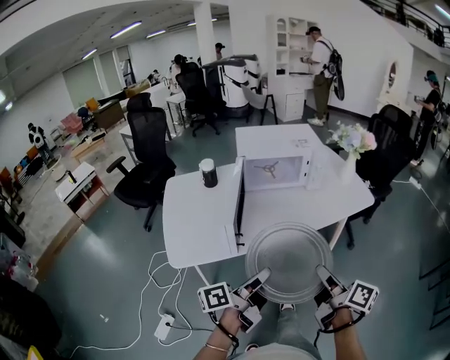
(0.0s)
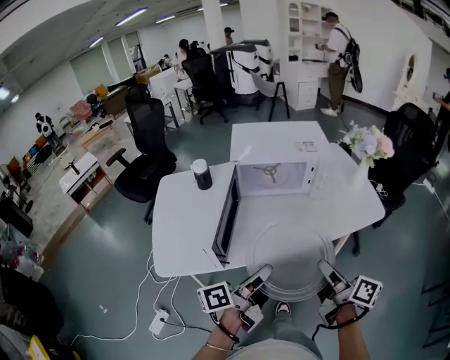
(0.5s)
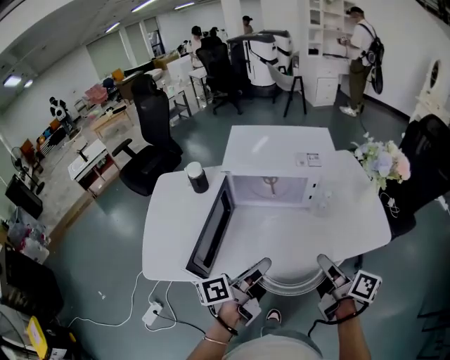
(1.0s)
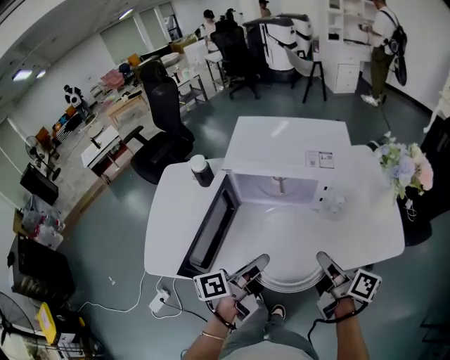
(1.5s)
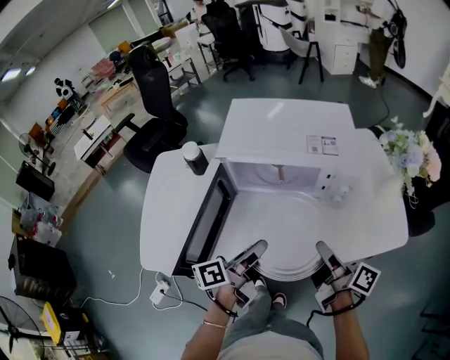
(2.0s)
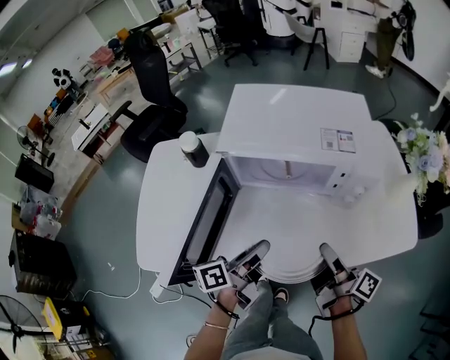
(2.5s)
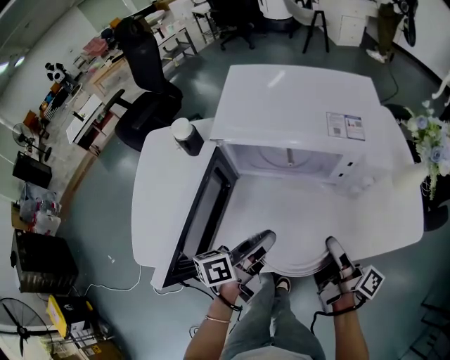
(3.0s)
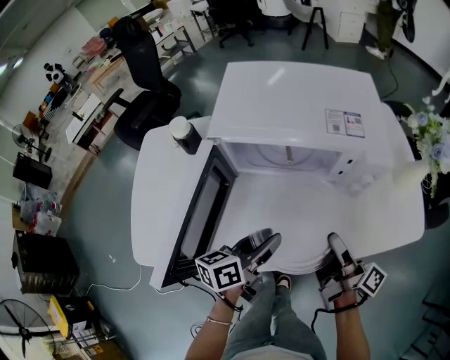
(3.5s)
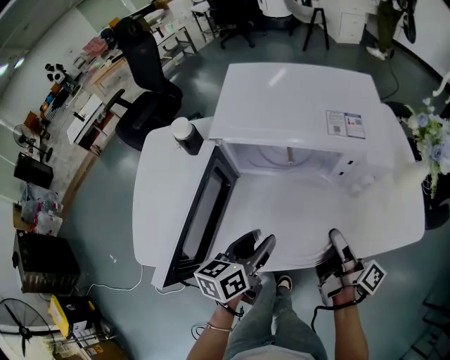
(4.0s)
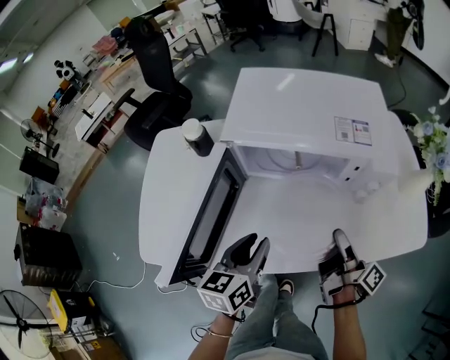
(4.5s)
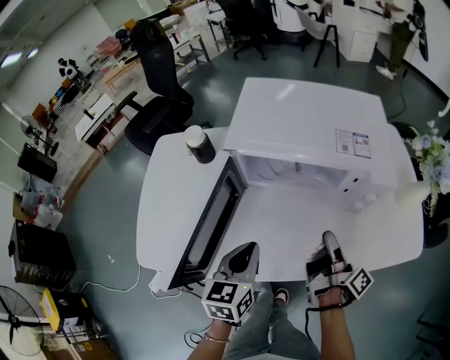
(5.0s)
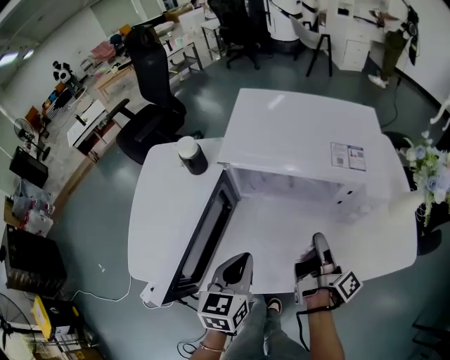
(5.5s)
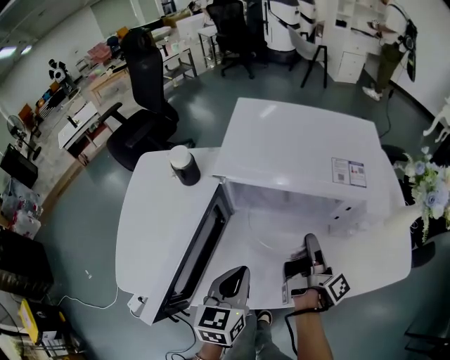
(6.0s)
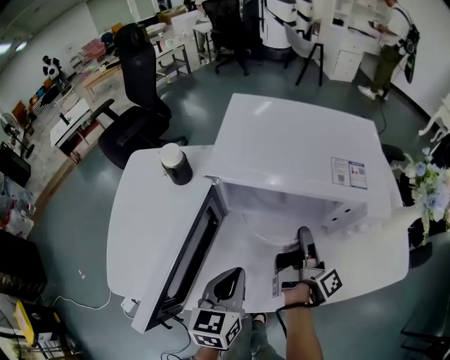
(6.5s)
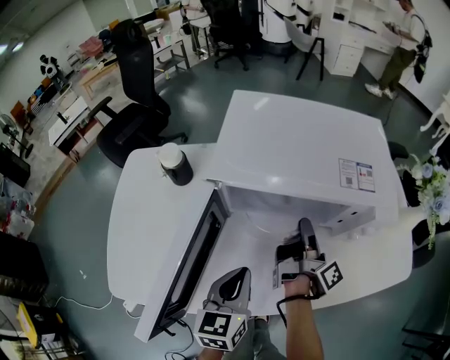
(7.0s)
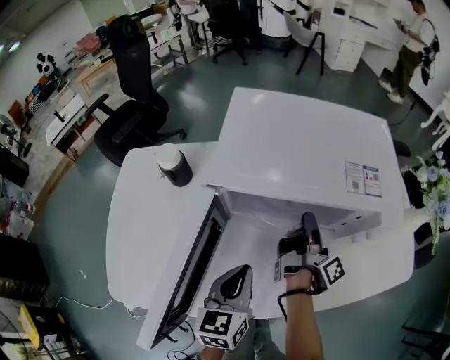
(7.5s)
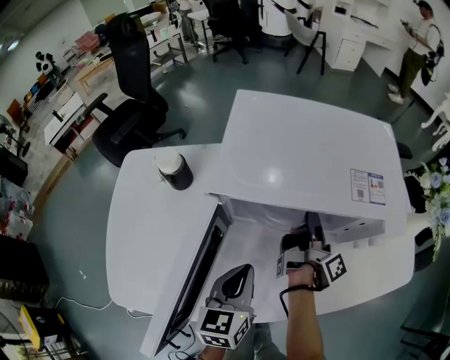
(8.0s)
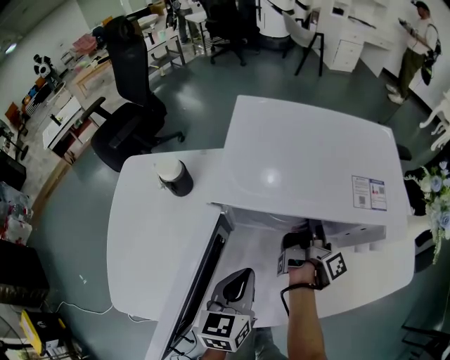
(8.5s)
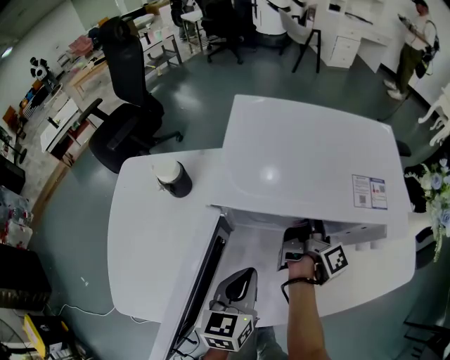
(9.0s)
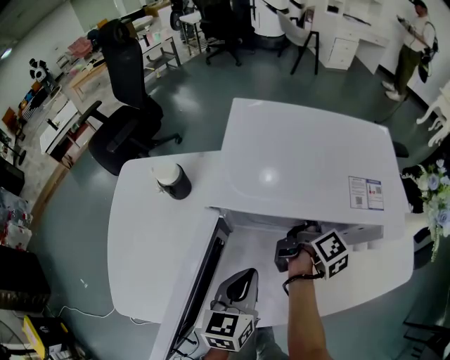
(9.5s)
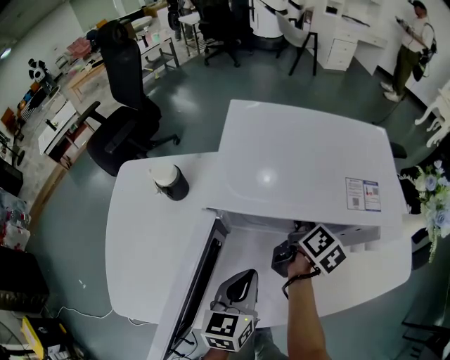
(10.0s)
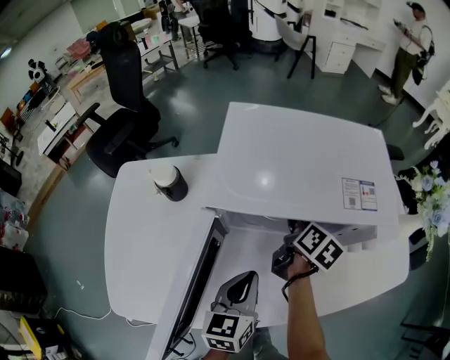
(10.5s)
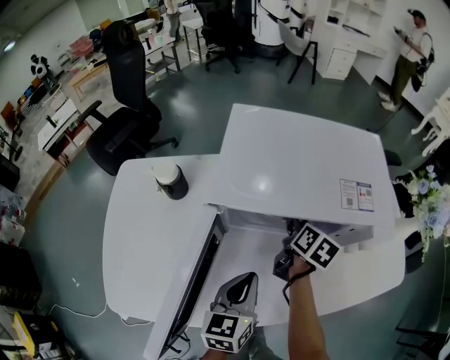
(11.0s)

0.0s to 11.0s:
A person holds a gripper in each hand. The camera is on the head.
0.0s to 2.0s: The grippers both shift forward by about 35 cm. The right gripper changes its angle by roughly 30 degrees.
2.0s to 3.5s: Both grippers move downward, about 5 cm.
3.5s to 5.5s: The right gripper moves forward, some 5 cm, while the left gripper travels to the left by about 5 cm, changes its angle by some 40 degrees, and closes up.
5.5s to 7.5s: The left gripper shifts approximately 5 cm forward. The right gripper travels forward by some 10 cm.
7.5s to 9.0s: The grippers make only small movements.
9.0s to 11.0s: The right gripper twists approximately 50 degrees counterclockwise, seen from behind, and opens.

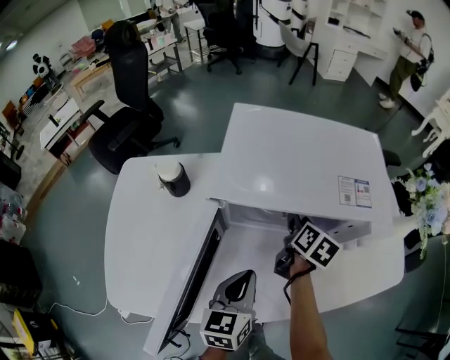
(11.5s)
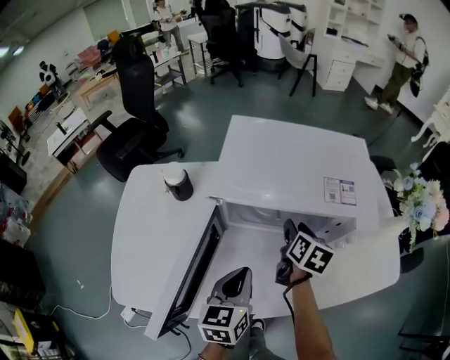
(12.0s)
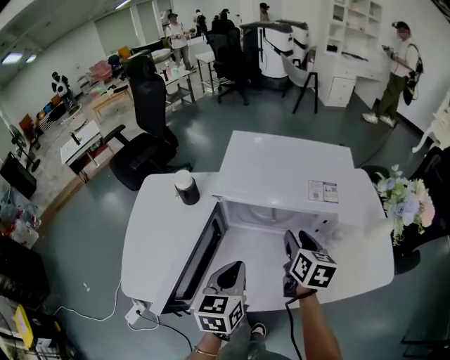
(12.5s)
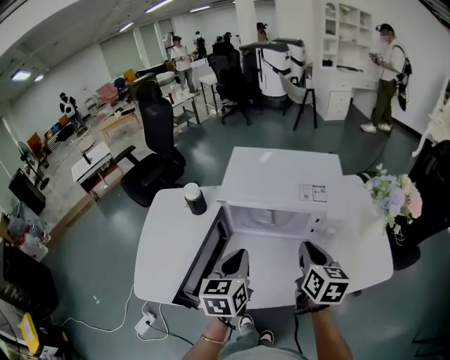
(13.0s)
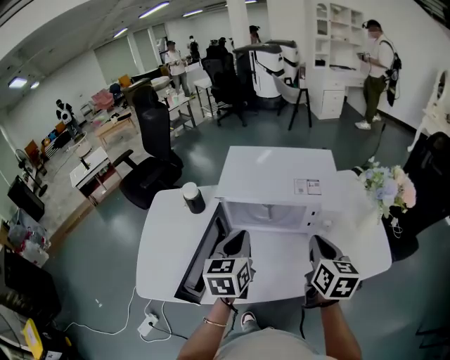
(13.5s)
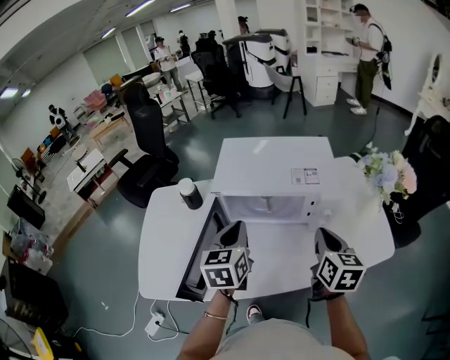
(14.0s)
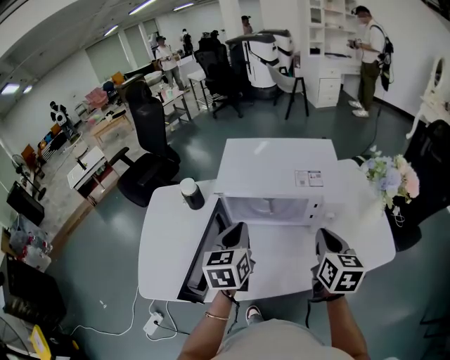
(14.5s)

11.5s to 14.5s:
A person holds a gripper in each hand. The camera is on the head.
11.5s to 13.0s: The right gripper is displaced upward and backward by roughly 25 cm, swivels roughly 30 degrees, and closes up, while the left gripper travels upward by about 15 cm.

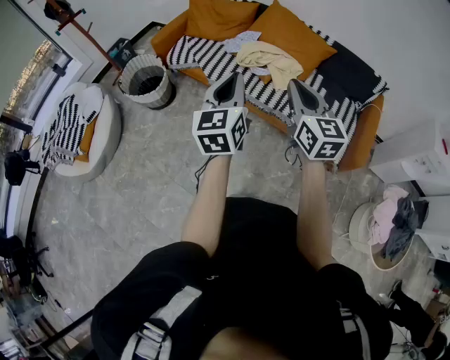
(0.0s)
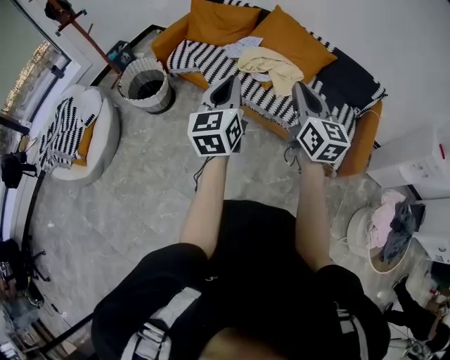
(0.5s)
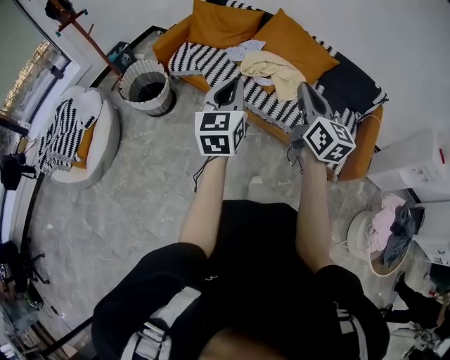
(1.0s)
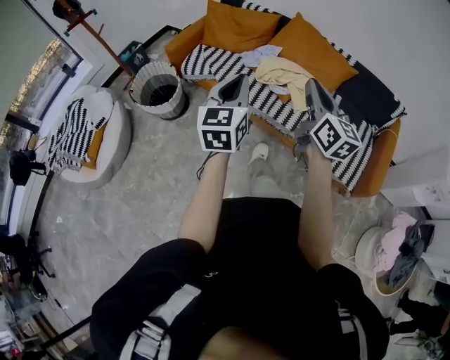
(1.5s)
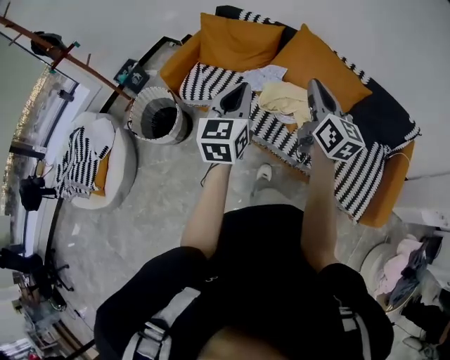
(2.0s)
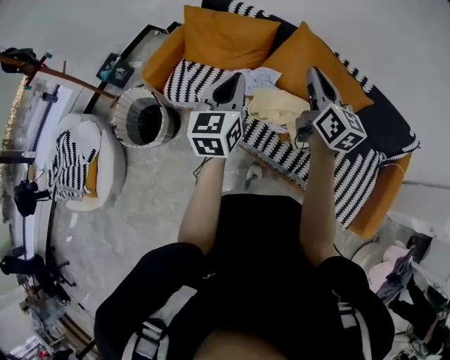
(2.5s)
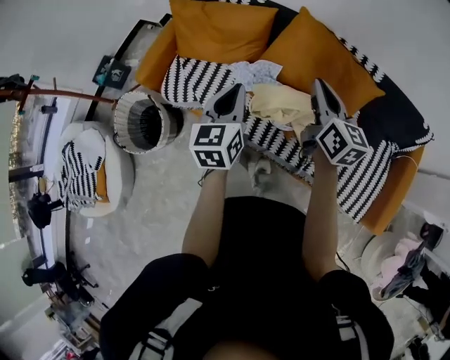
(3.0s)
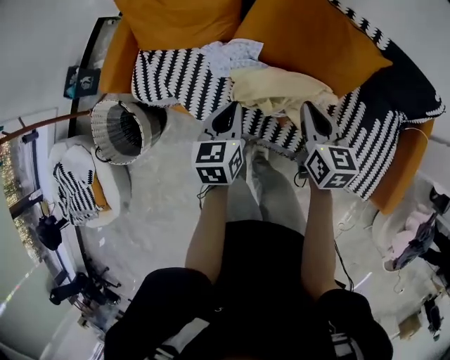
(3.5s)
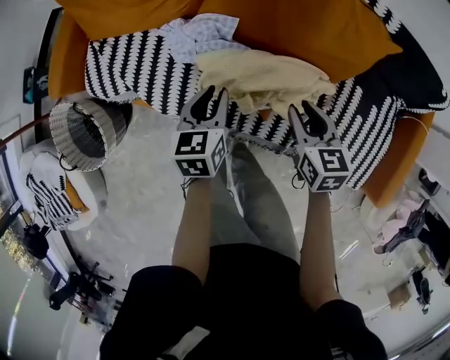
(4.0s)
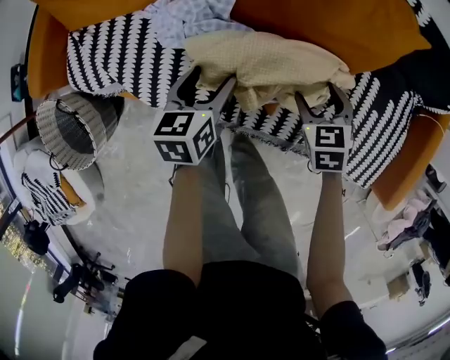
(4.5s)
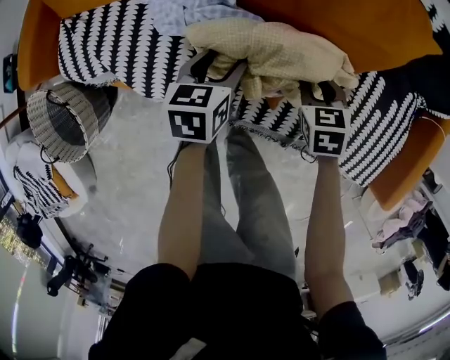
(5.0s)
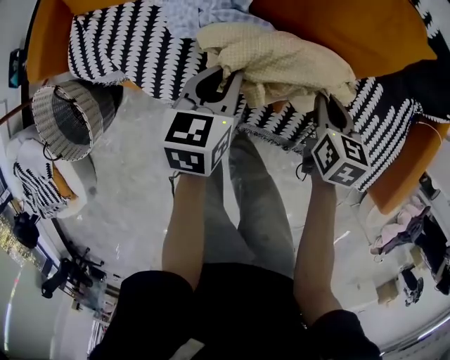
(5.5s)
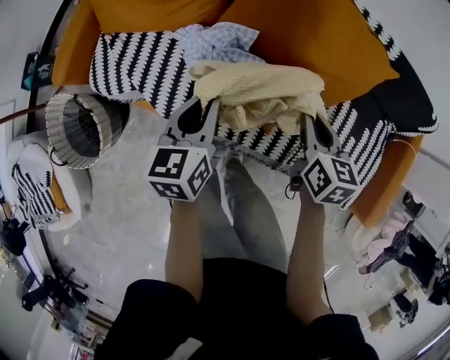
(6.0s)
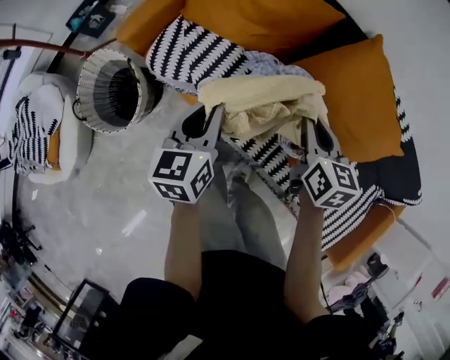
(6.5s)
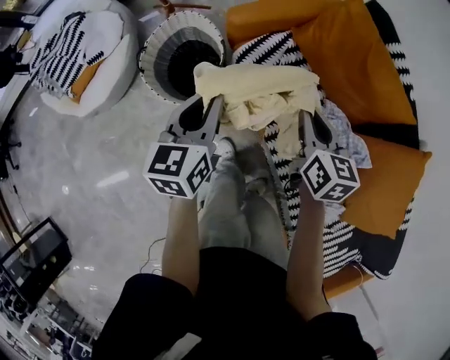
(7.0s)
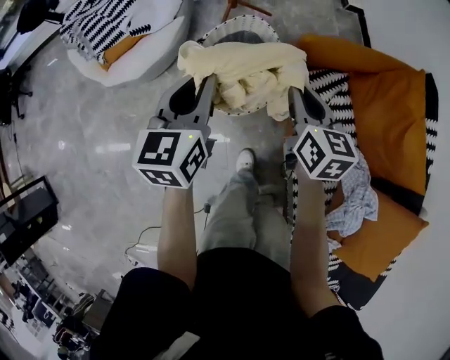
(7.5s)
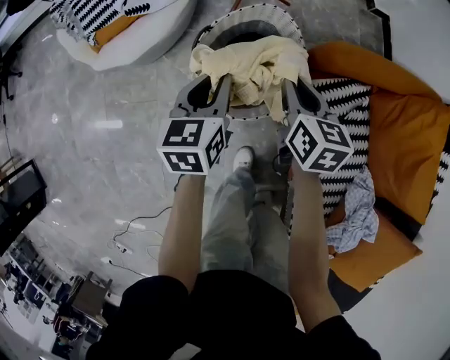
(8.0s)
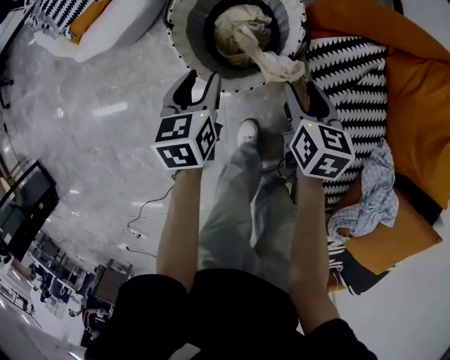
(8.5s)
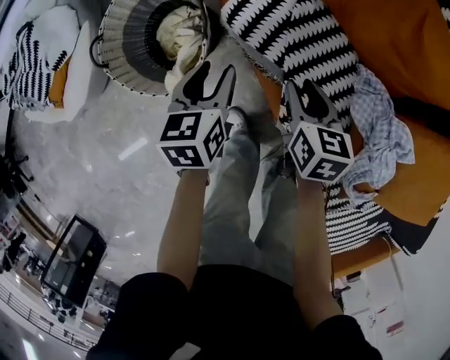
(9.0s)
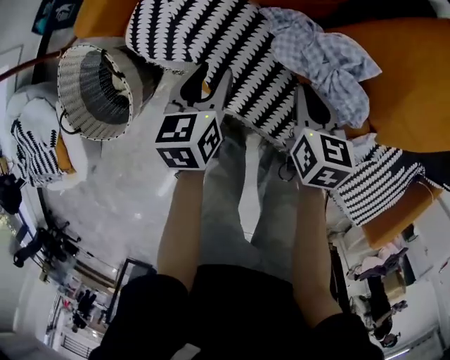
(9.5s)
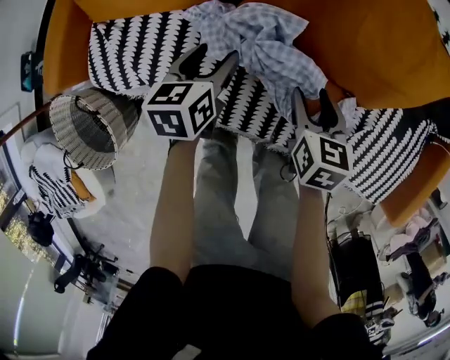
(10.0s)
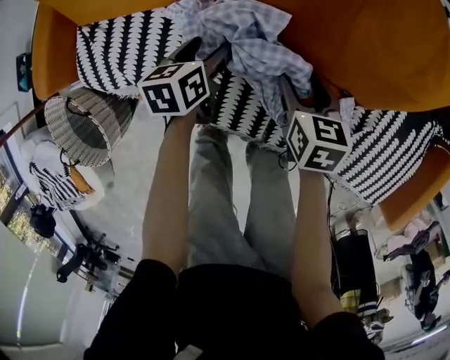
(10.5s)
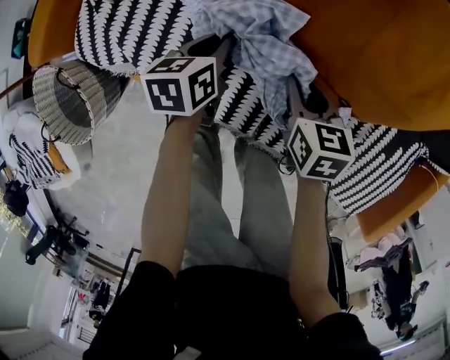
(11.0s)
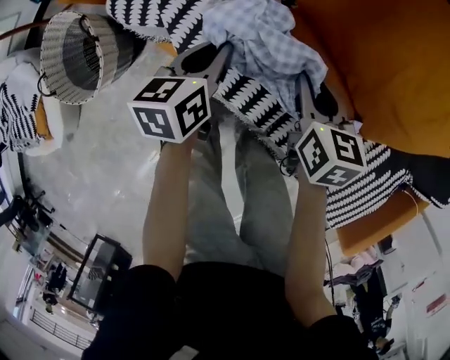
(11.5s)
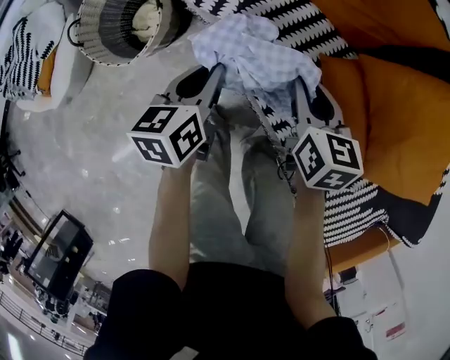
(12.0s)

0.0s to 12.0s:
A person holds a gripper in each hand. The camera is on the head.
0.0s to 2.0s: The two grippers go some 35 cm forward. The right gripper turns by about 20 degrees.
2.0s to 4.0s: The right gripper shifts roughly 40 cm downward, and tilts its fingers roughly 40 degrees downward. Meanwhile the left gripper heads downward and forward, covering some 50 cm, and angles its fingers downward, by about 30 degrees.
4.0s to 6.0s: The right gripper goes downward and returns, roughly 15 cm each way, and opens and closes again; the left gripper goes about 5 cm upward, and opens, then closes again.
6.0s to 8.0s: The pair of grippers is taken approximately 80 cm. The left gripper rotates some 70 degrees; the right gripper changes its angle by some 70 degrees.
8.0s to 10.0s: Both grippers are carried approximately 70 cm. The left gripper changes its angle by approximately 70 degrees, and opens; the right gripper changes its angle by about 70 degrees, and opens up.
10.0s to 12.0s: The right gripper changes place by some 30 cm, changes its angle by about 40 degrees, and closes its fingers; the left gripper ends up approximately 30 cm from where it was, rotates roughly 40 degrees, and closes up.
